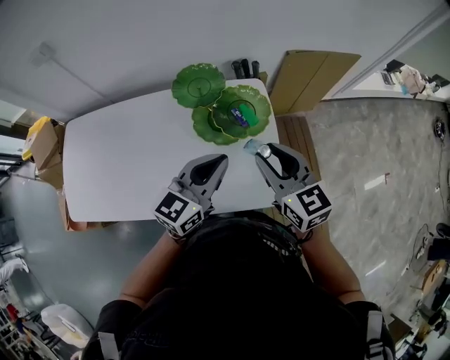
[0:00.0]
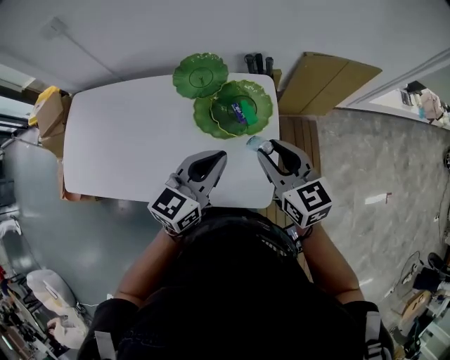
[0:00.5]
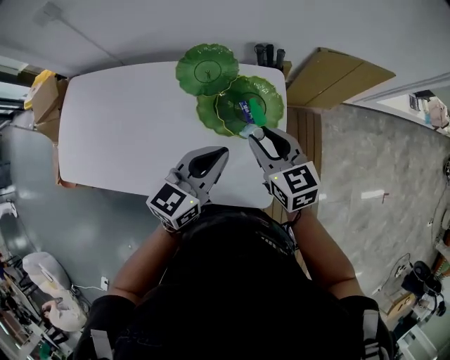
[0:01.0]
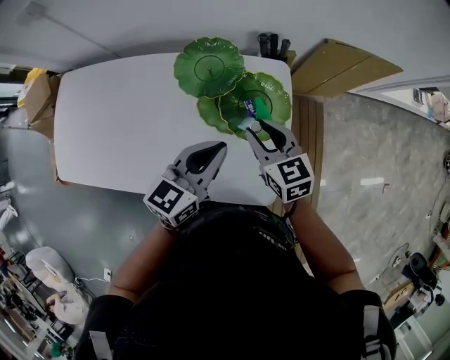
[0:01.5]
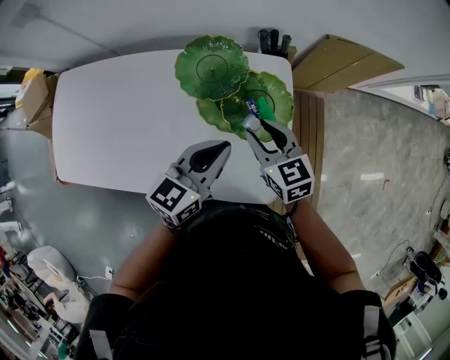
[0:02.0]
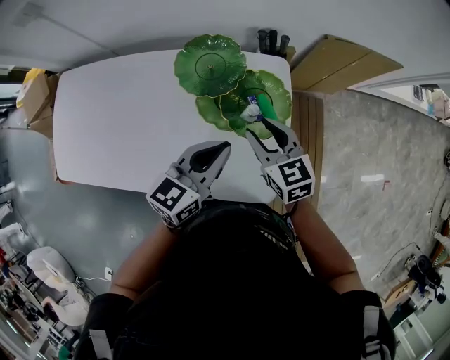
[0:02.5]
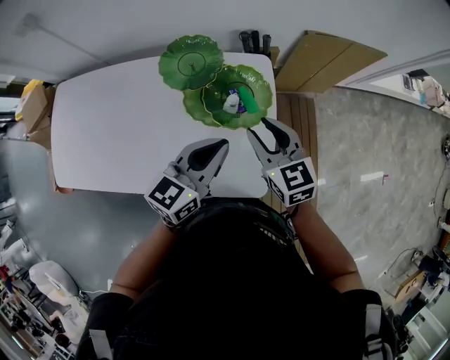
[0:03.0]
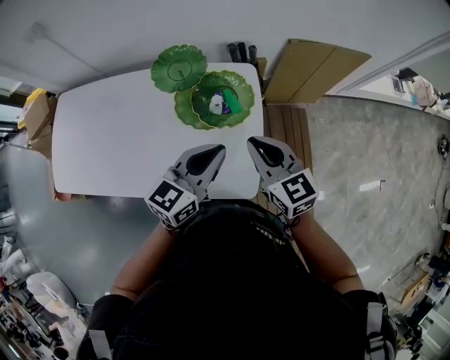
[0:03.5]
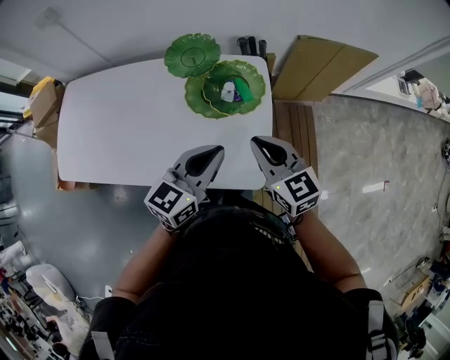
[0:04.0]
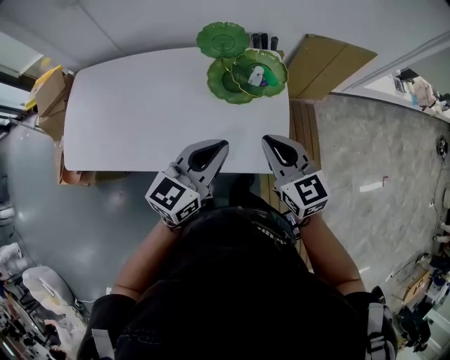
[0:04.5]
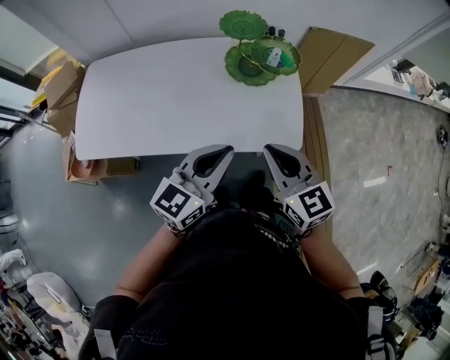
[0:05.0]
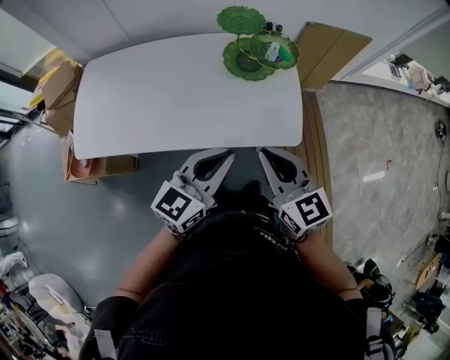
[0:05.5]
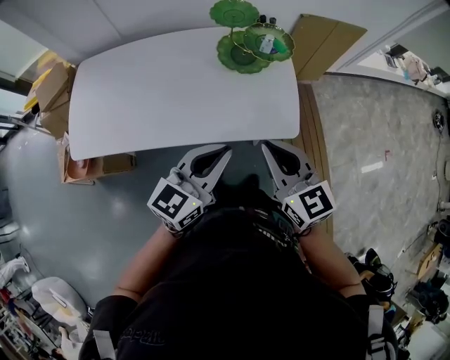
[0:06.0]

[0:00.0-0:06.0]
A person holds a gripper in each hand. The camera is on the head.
0:00.0 to 0:02.0: The left gripper is displaced forward and downward by roughly 10 cm, while the right gripper moves downward and forward, about 20 cm.
0:02.0 to 0:04.0: The left gripper goes roughly 15 cm backward, to the right and upward. The right gripper travels backward, upward and to the right by about 15 cm, and closes.
0:04.0 to 0:06.0: The two grippers go some 25 cm backward and to the left.

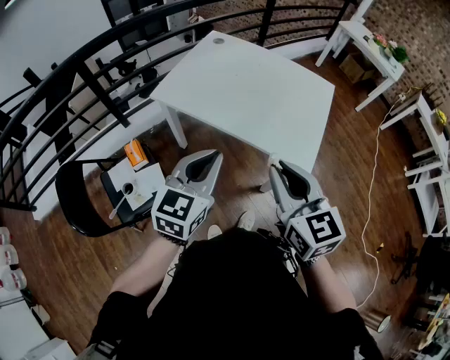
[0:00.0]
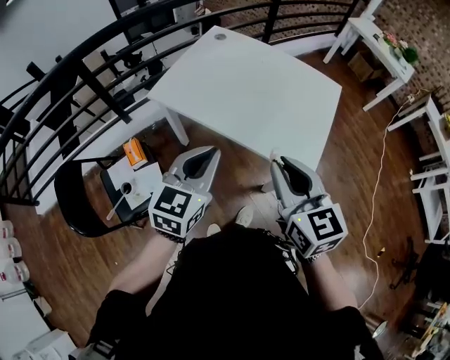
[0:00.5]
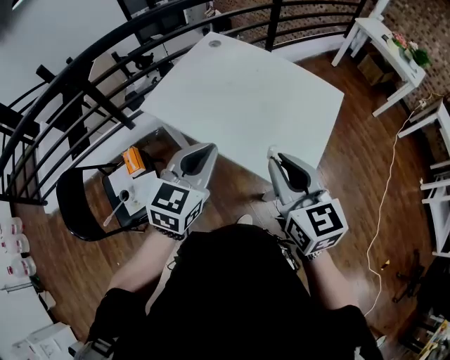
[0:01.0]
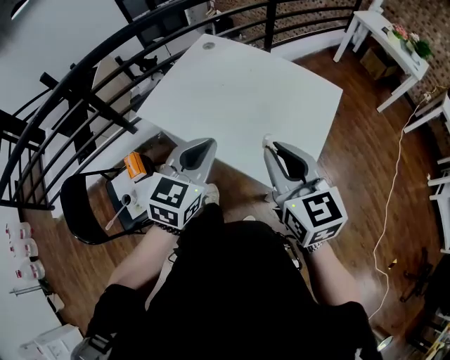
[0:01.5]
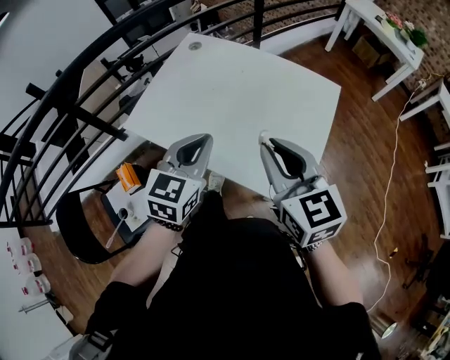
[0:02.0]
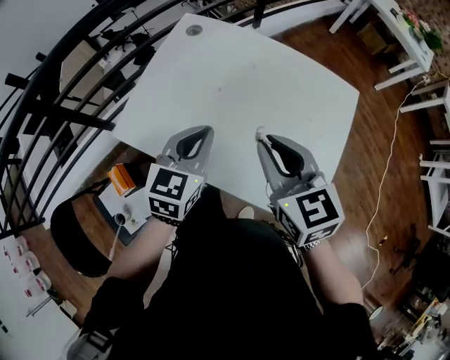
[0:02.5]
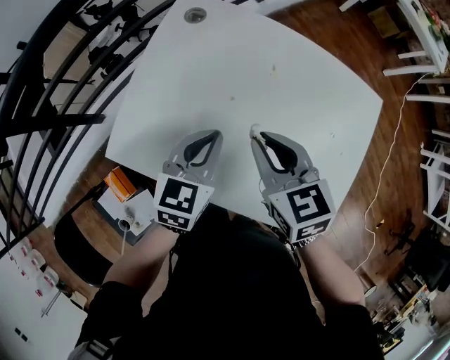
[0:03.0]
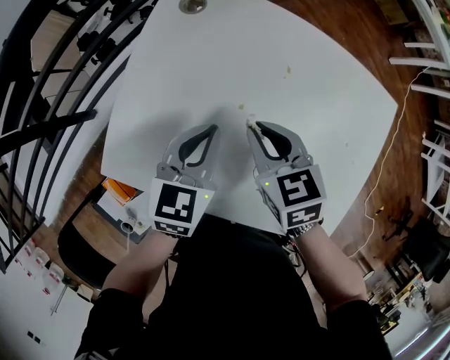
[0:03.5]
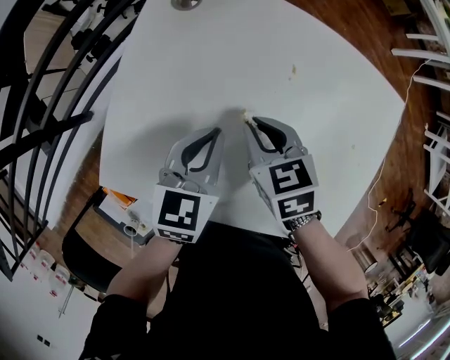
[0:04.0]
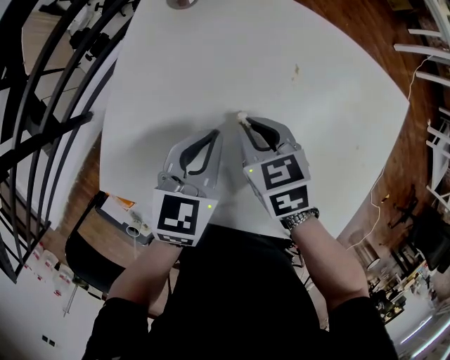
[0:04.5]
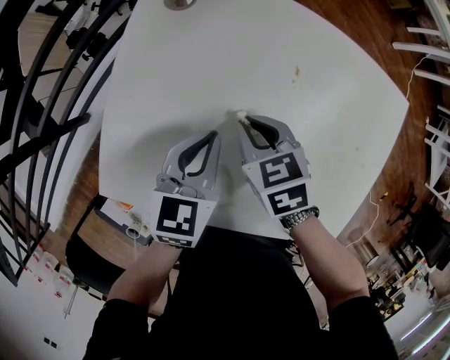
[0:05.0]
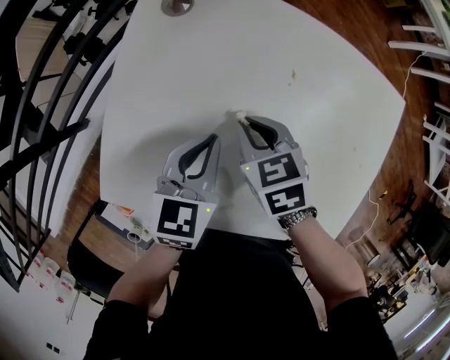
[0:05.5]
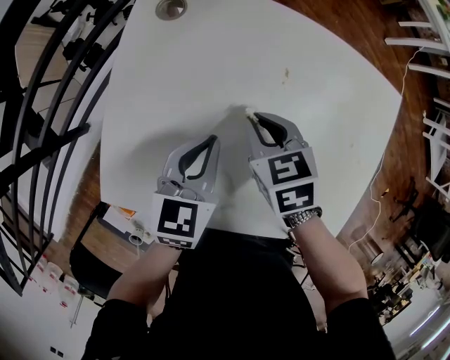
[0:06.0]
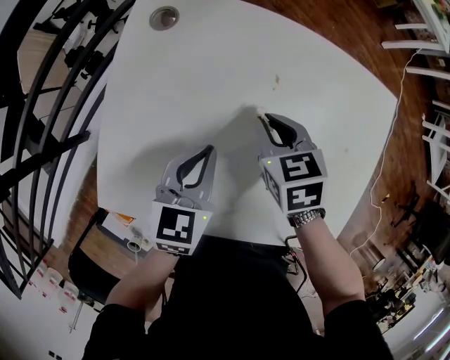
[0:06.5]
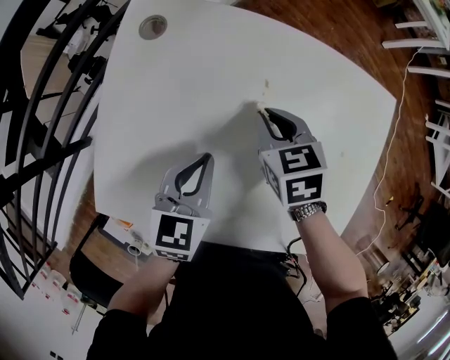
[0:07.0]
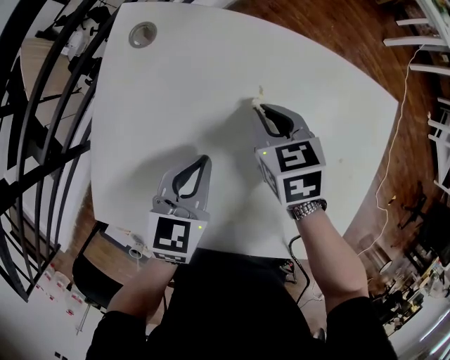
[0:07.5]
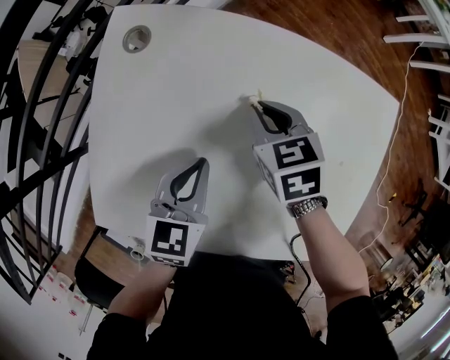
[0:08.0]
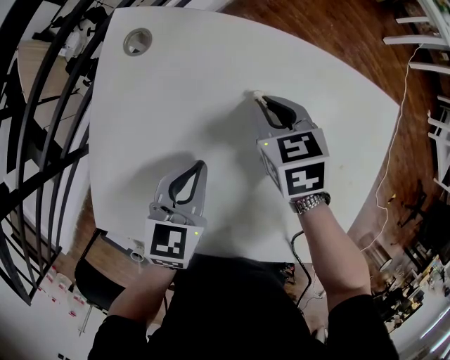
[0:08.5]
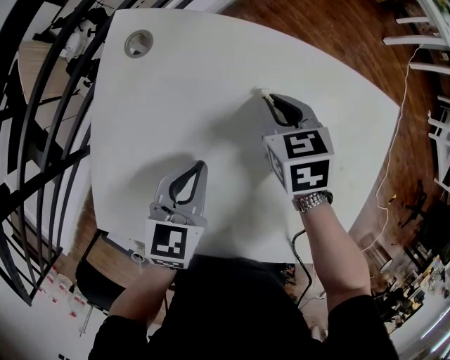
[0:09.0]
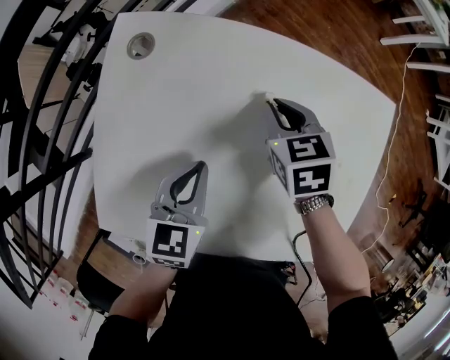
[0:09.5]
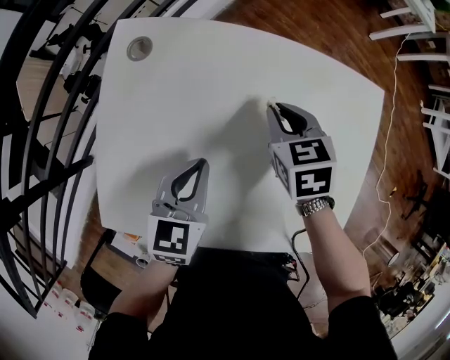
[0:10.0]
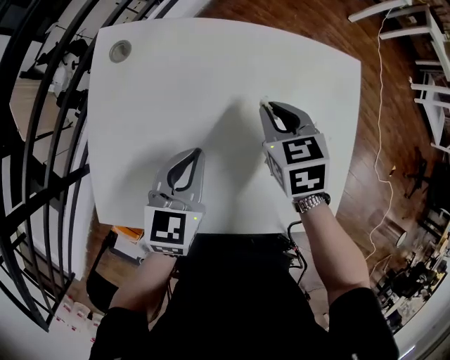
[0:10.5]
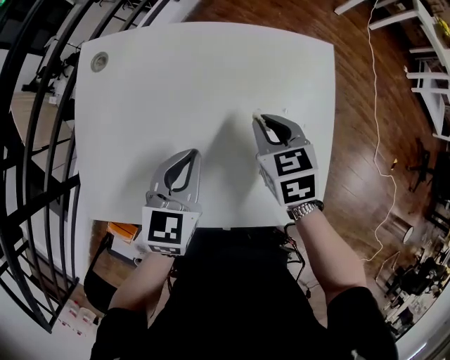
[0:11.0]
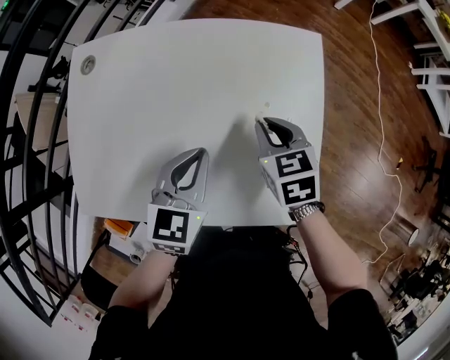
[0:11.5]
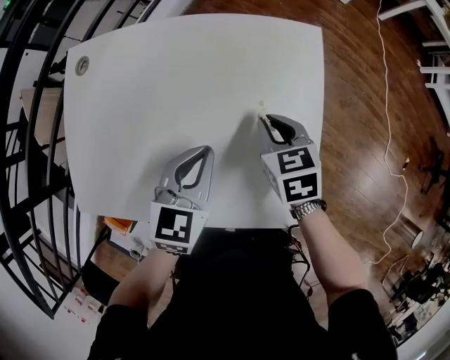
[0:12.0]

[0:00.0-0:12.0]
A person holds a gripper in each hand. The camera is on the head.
0:00.0 to 0:02.0: The two grippers go some 25 cm forward and to the right.
0:02.0 to 0:04.0: The grippers both shift forward, downward and to the left by approximately 40 cm. The right gripper points its fingers some 40 degrees further downward. Meanwhile the left gripper turns by approximately 20 degrees.
0:04.0 to 0:06.0: The grippers move only a little.
0:06.0 to 0:08.0: The right gripper goes about 10 cm forward and to the right.
0:08.0 to 0:10.0: The right gripper moves roughly 5 cm.
0:10.0 to 0:12.0: The left gripper goes approximately 20 cm to the right. The right gripper goes approximately 25 cm to the right and backward.

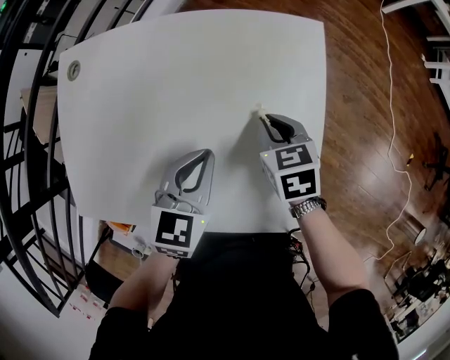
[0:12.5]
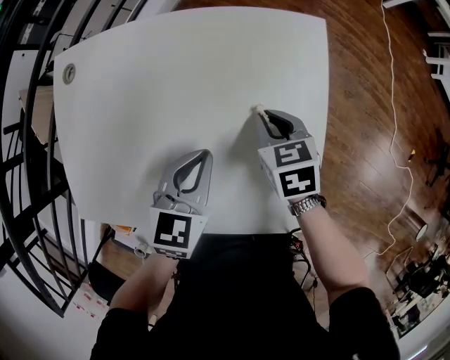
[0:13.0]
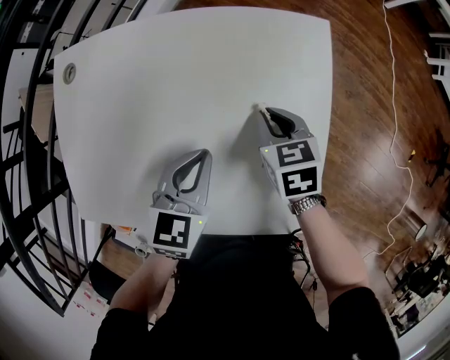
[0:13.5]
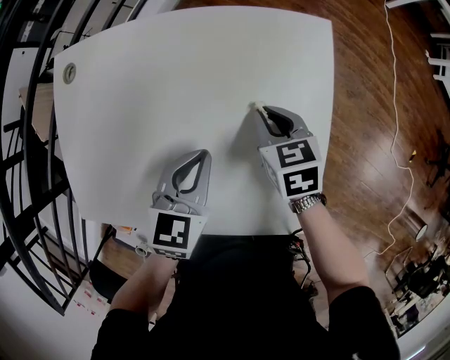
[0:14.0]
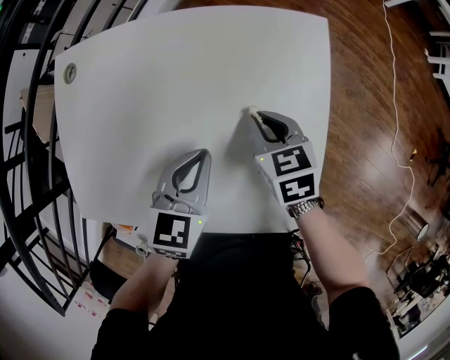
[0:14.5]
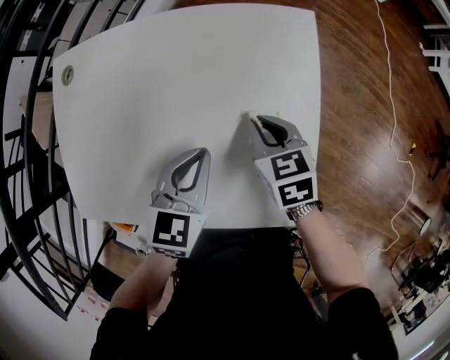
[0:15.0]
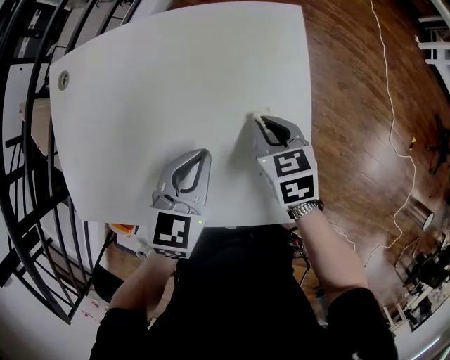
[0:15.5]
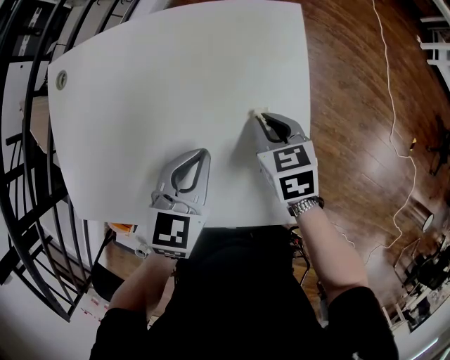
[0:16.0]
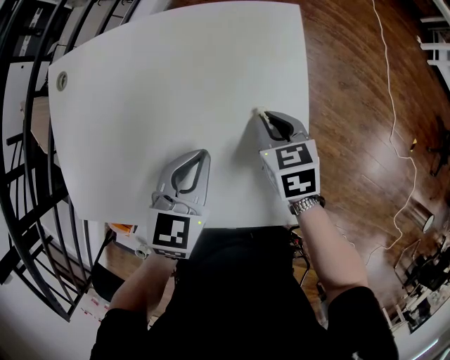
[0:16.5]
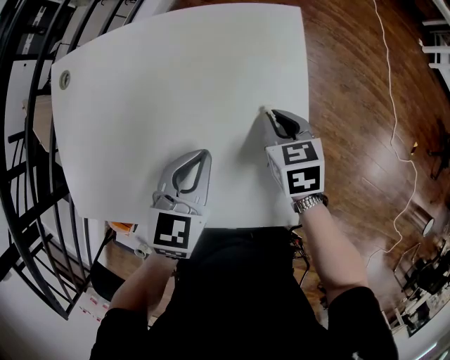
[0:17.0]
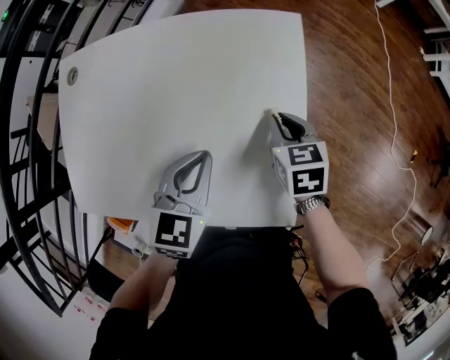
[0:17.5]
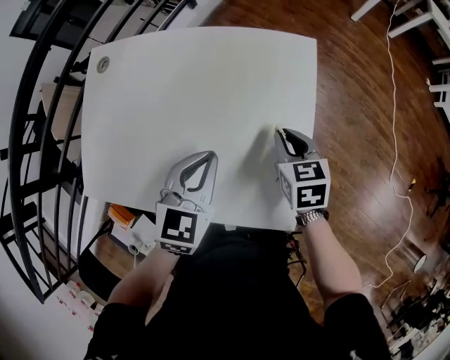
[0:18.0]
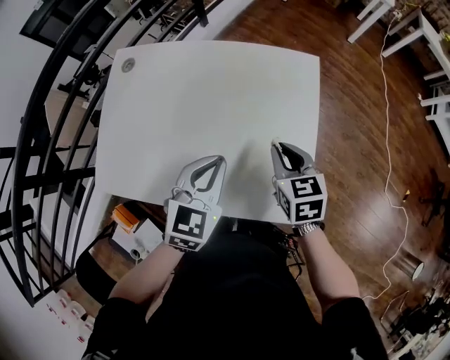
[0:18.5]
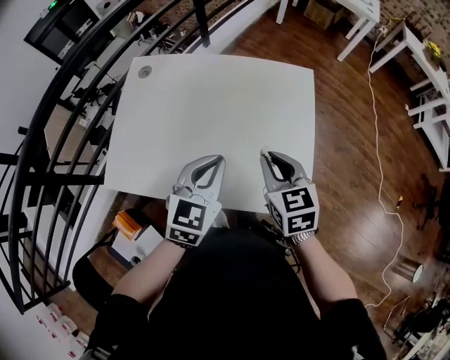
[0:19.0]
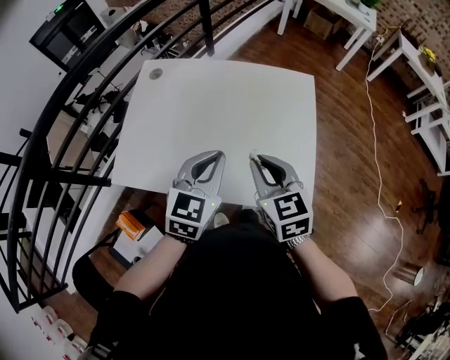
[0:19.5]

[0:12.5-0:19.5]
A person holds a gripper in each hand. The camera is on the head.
0:12.5 to 0:14.5: The grippers move only a little.
0:14.5 to 0:16.0: The right gripper travels to the right by some 5 cm, while the left gripper moves about 5 cm.
0:16.0 to 0:17.5: The grippers stay close to where they were, moving slightly.
0:17.5 to 0:19.5: The right gripper moves to the left, upward and backward, roughly 30 cm, and turns by approximately 30 degrees, while the left gripper moves to the left, upward and backward, roughly 20 cm.

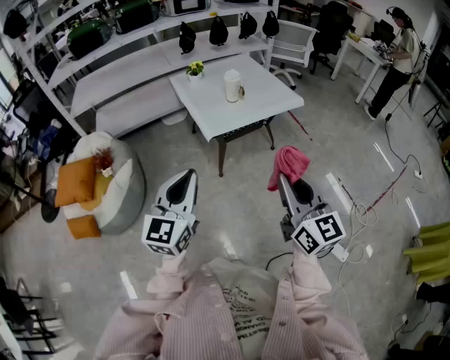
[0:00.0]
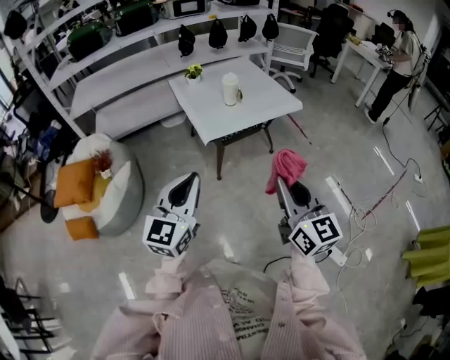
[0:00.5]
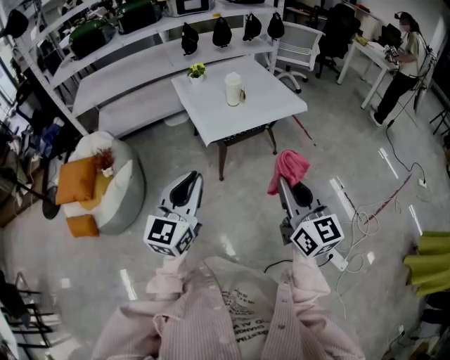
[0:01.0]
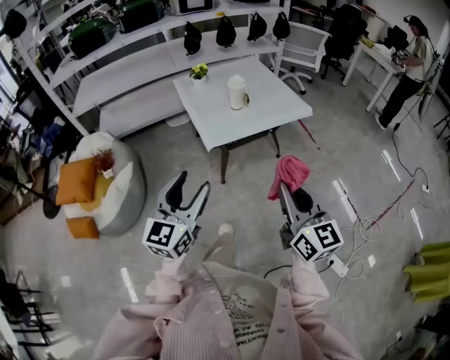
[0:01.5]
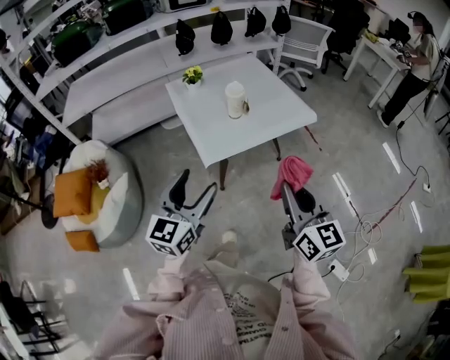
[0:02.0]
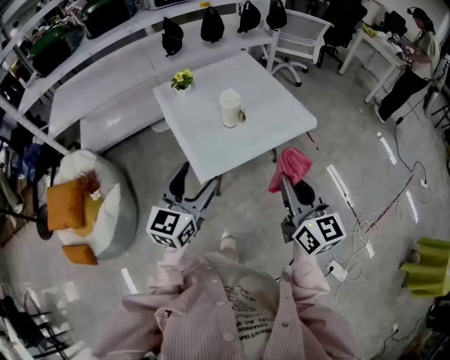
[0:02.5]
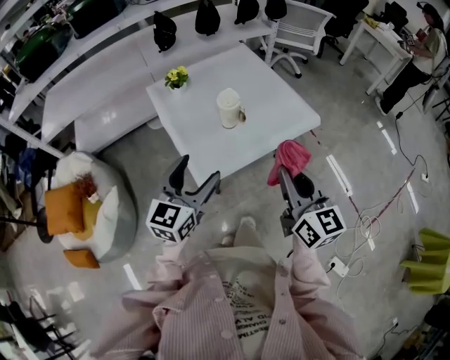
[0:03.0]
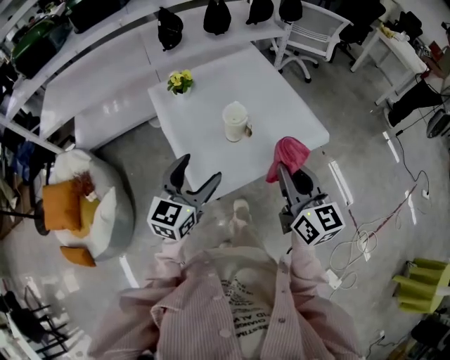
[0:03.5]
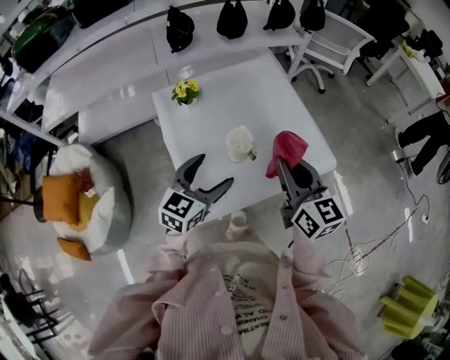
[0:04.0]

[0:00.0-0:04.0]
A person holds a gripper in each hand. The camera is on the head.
0:00.0 to 0:02.0: Both grippers move forward, some 20 cm. The left gripper opens its fingers.
0:02.0 to 0:04.0: Both grippers travel together forward, approximately 40 cm.
